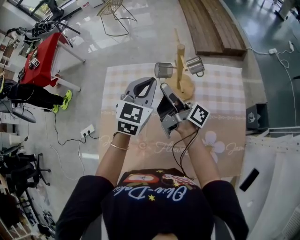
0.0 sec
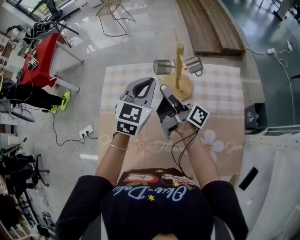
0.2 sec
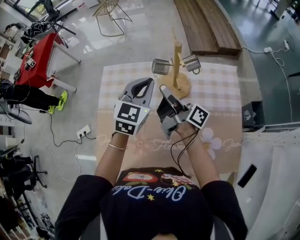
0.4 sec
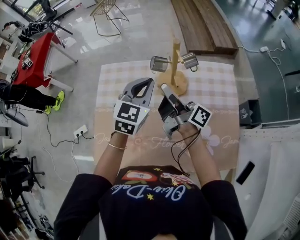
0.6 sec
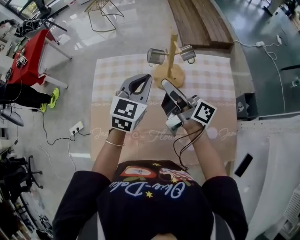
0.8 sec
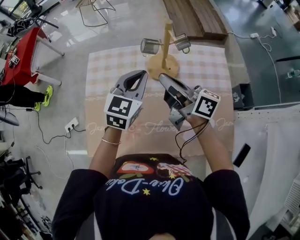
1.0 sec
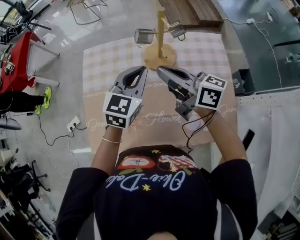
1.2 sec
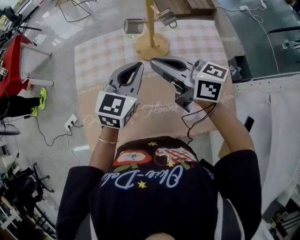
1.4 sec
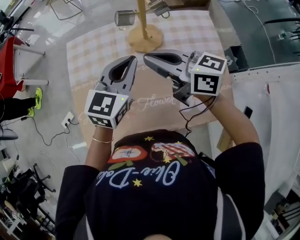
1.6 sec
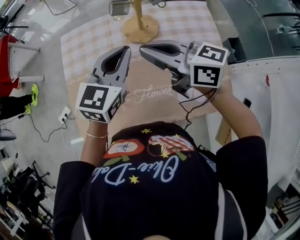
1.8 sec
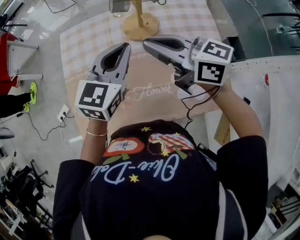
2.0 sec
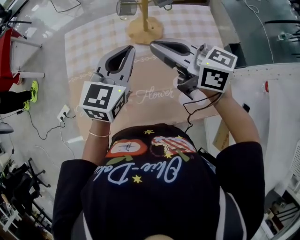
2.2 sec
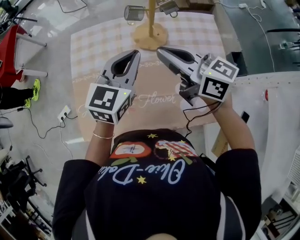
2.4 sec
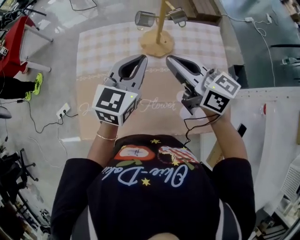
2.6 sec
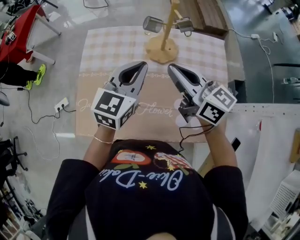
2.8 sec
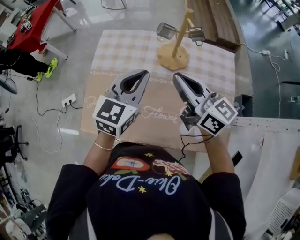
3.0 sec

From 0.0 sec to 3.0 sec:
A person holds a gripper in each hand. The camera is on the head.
From 0.0 sec to 1.6 sec: The left gripper shifts approximately 10 cm backward, while the right gripper is displaced backward and upward by some 15 cm, and rolls counterclockwise, seen from behind, by some 50 degrees.
From 1.6 sec to 3.0 sec: The grippers make only small movements.

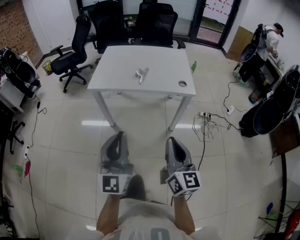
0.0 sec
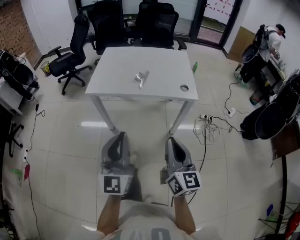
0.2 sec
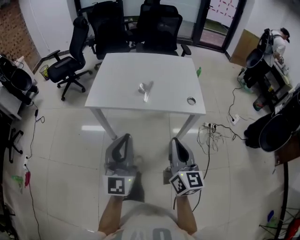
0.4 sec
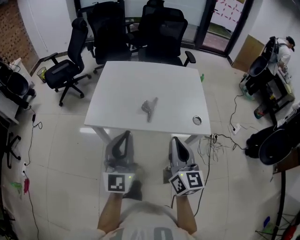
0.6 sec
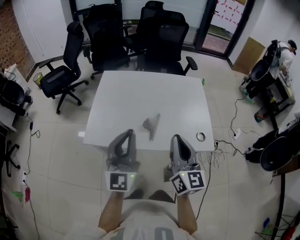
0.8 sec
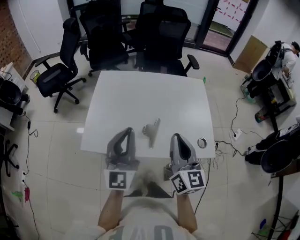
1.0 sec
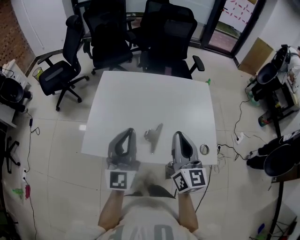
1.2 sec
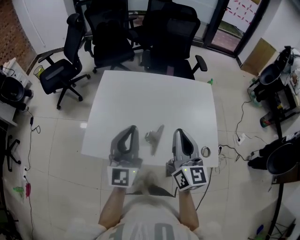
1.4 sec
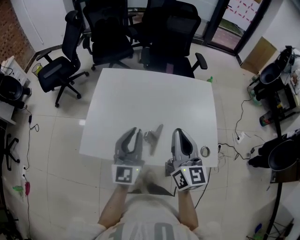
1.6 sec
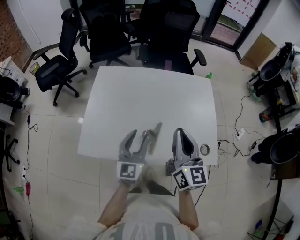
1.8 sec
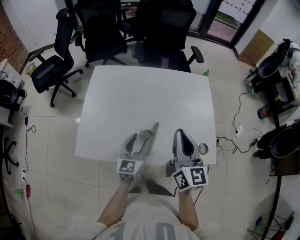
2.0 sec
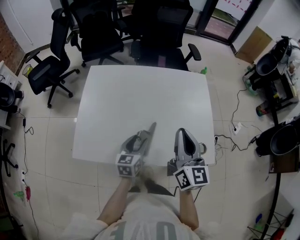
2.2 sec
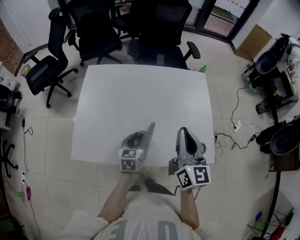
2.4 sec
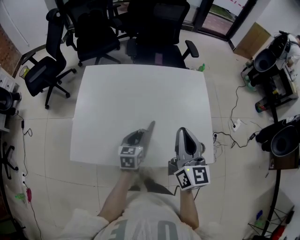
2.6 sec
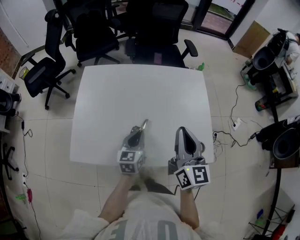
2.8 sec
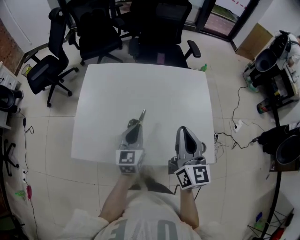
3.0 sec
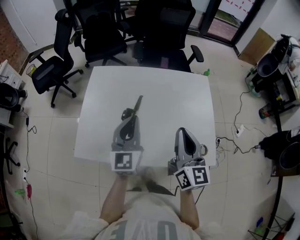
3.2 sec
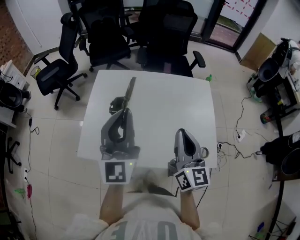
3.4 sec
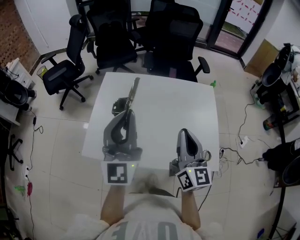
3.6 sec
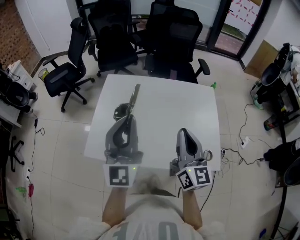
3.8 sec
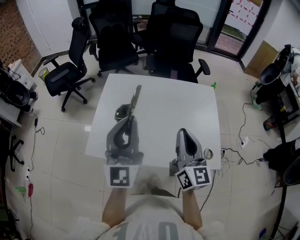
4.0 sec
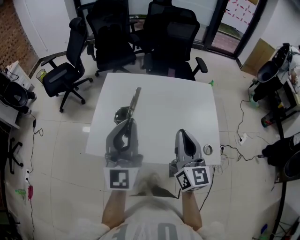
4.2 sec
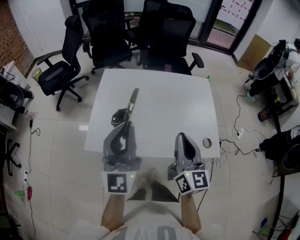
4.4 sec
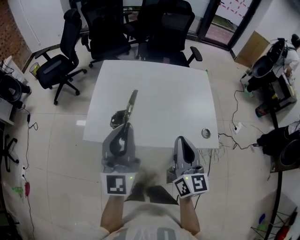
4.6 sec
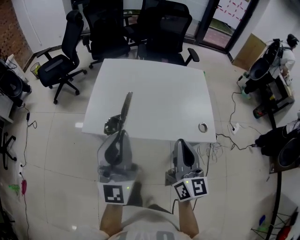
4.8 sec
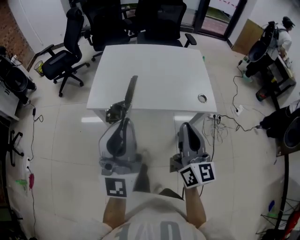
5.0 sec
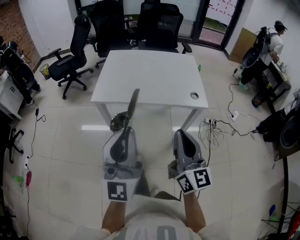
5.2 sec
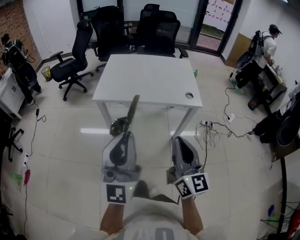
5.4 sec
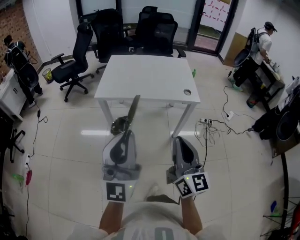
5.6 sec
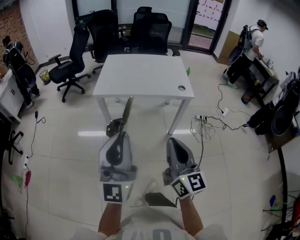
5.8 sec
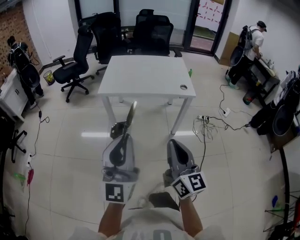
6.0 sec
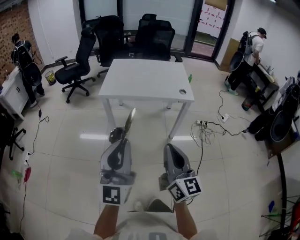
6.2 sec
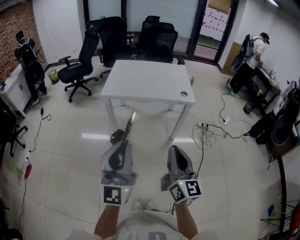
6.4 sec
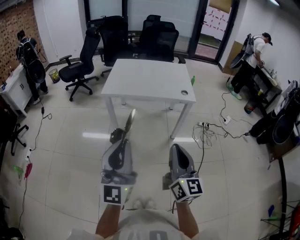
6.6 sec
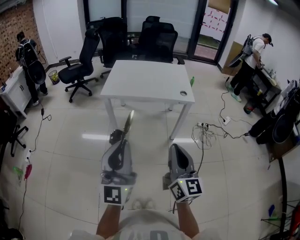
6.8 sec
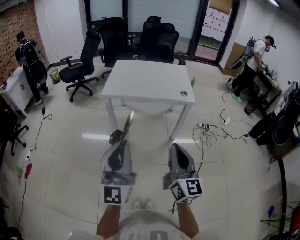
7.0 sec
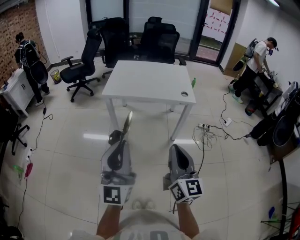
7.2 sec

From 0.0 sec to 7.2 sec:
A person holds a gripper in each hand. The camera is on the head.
From 0.0 sec to 1.4 sec: Both grippers are carried forward, some 50 cm.
From 1.4 sec to 2.8 sec: The left gripper moves downward, some 20 cm, points its fingers roughly 40 degrees further downward, and opens, then closes again. The right gripper travels to the right by approximately 5 cm.
From 2.8 sec to 4.4 sec: The left gripper goes approximately 30 cm upward, and angles its fingers upward, by about 40 degrees, while the right gripper shifts about 10 cm backward and to the left.
From 4.4 sec to 5.8 sec: Both grippers are carried backward, approximately 50 cm.
From 5.8 sec to 7.2 sec: Both grippers travel together backward, some 5 cm.

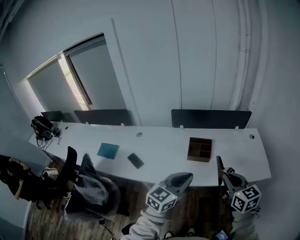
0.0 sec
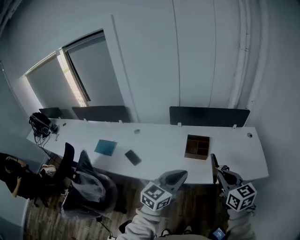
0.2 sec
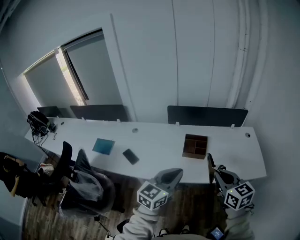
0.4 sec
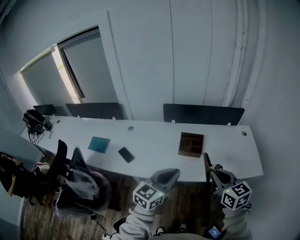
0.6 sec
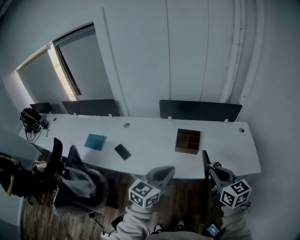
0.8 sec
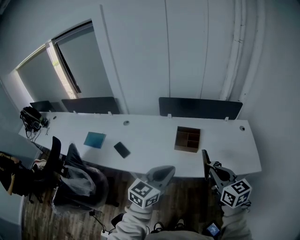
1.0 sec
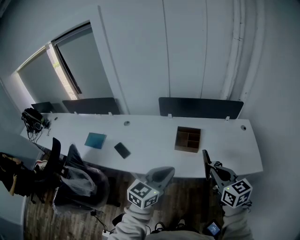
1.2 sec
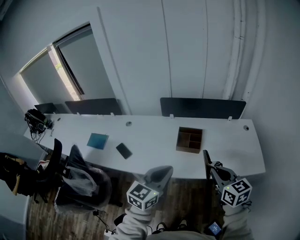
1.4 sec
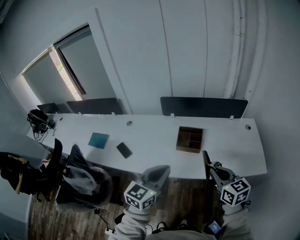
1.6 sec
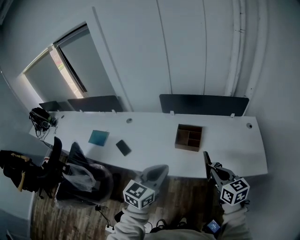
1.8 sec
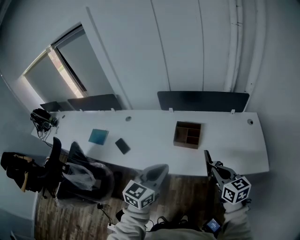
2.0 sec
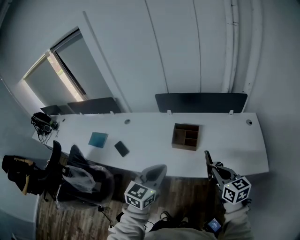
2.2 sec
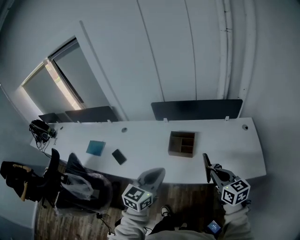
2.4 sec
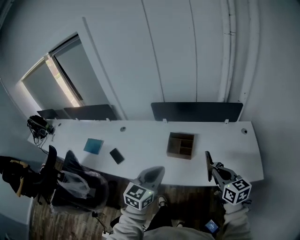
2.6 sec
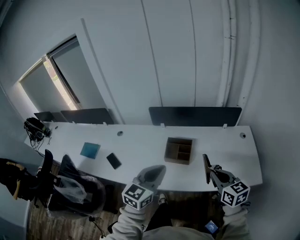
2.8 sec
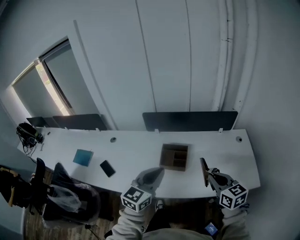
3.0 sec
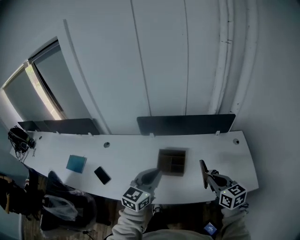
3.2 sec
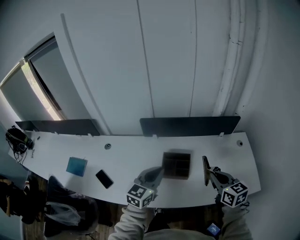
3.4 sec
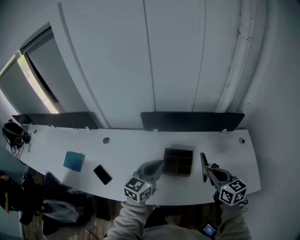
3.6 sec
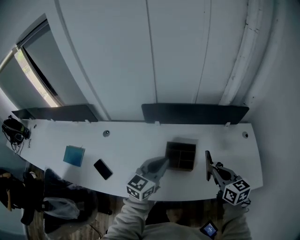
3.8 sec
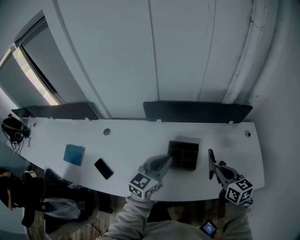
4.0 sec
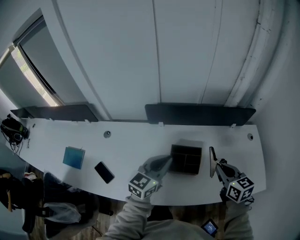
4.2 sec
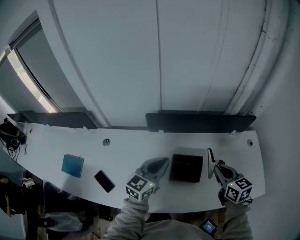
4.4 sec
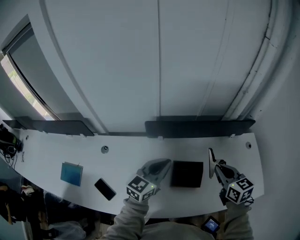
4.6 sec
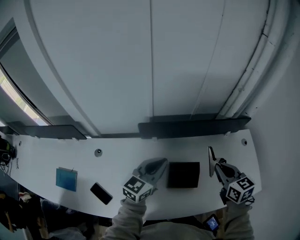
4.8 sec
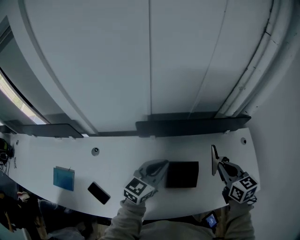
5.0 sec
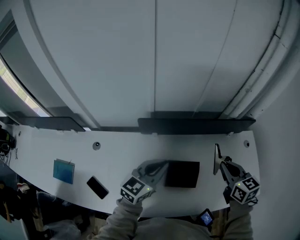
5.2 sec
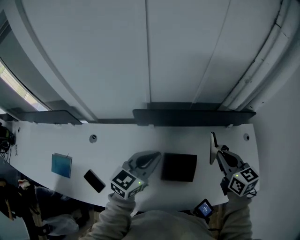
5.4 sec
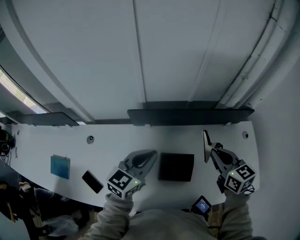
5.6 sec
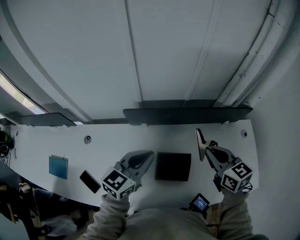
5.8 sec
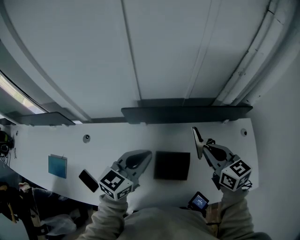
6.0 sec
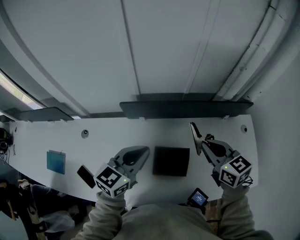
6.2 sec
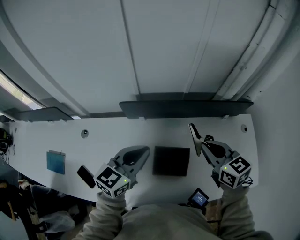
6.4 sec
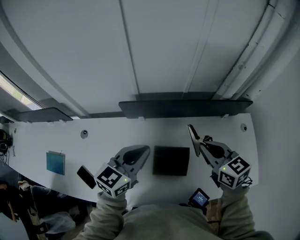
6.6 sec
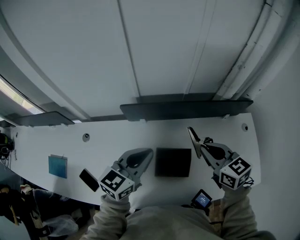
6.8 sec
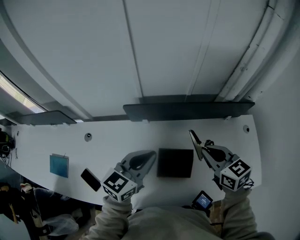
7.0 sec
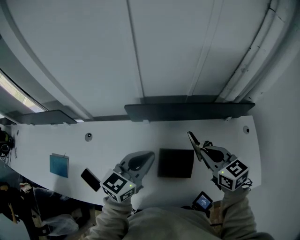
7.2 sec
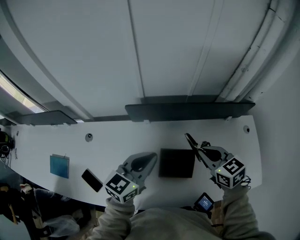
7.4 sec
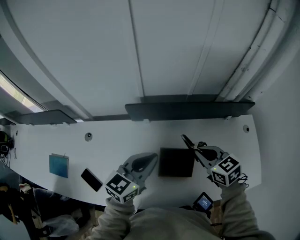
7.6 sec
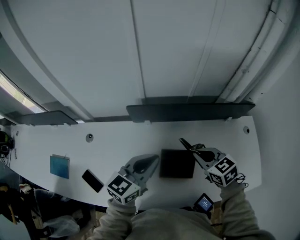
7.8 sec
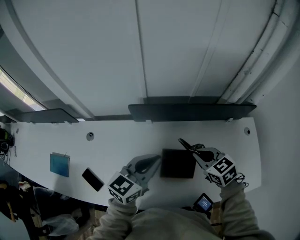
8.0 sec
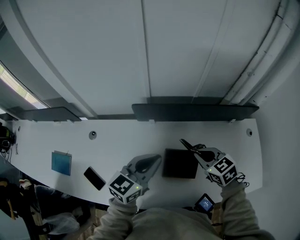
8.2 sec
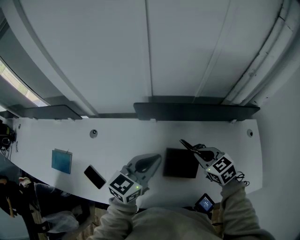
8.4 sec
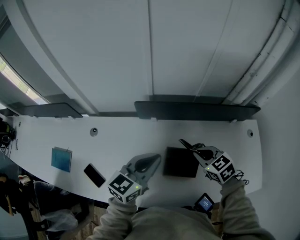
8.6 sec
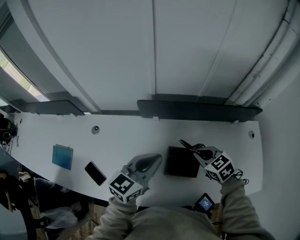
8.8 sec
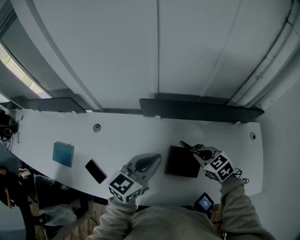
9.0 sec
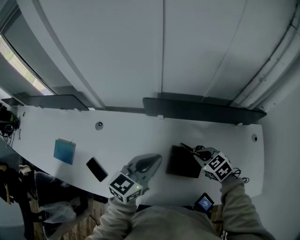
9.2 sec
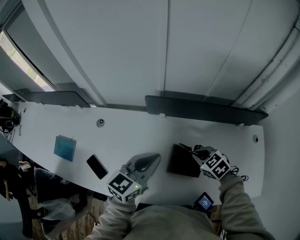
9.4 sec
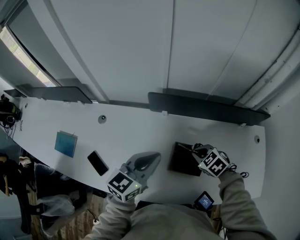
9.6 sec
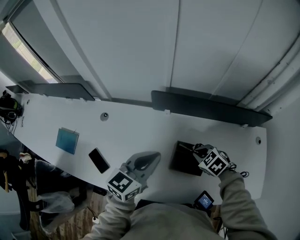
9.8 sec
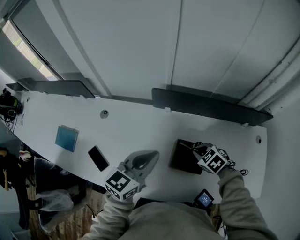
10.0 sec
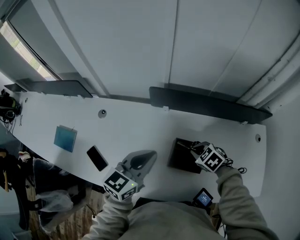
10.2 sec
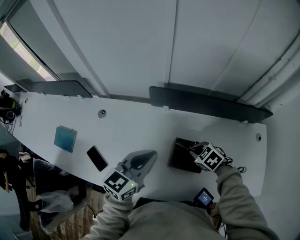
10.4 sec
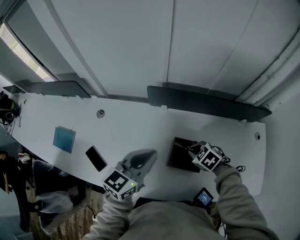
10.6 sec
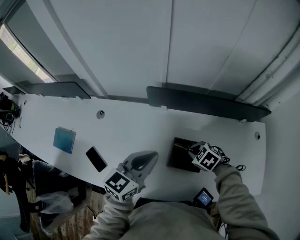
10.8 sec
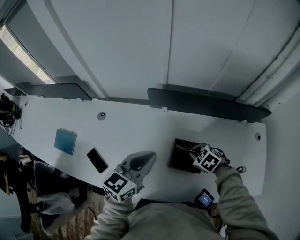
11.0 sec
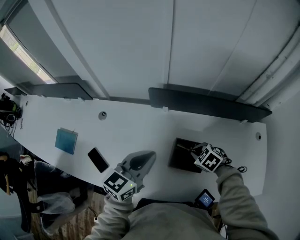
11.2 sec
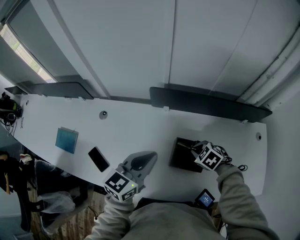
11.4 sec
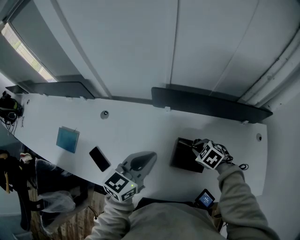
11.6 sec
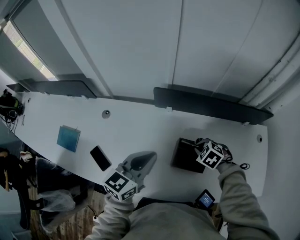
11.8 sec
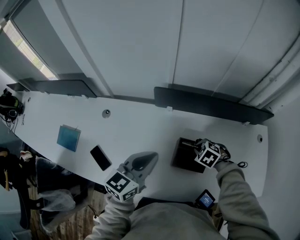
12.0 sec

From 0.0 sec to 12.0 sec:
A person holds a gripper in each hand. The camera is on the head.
From 0.0 sec to 1.6 sec: The right gripper is displaced downward by approximately 5 cm.
From 1.6 sec to 3.0 sec: The grippers both shift forward and to the right by approximately 15 cm.
From 3.0 sec to 4.4 sec: The grippers both shift forward and to the left by approximately 25 cm.
From 4.4 sec to 6.0 sec: The left gripper shifts about 5 cm forward. Meanwhile the right gripper travels forward by roughly 10 cm.
From 6.0 sec to 7.6 sec: The right gripper moves downward, approximately 5 cm.
From 7.6 sec to 9.0 sec: The right gripper heads downward, covering about 5 cm.
From 9.0 sec to 10.4 sec: The right gripper is displaced downward by about 10 cm, and changes its angle by approximately 20 degrees.
From 10.4 sec to 12.0 sec: The grippers stay close to where they were, moving slightly.

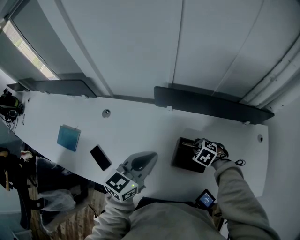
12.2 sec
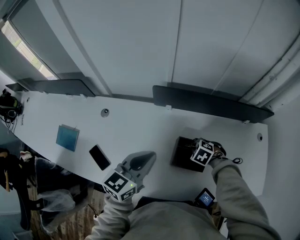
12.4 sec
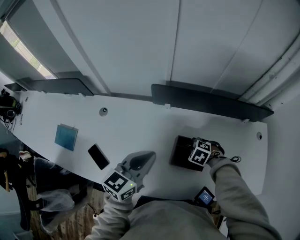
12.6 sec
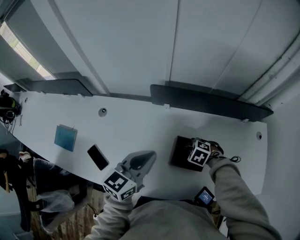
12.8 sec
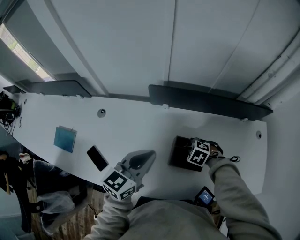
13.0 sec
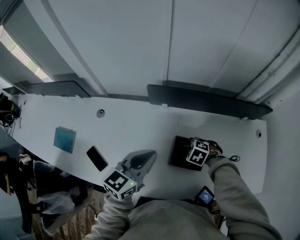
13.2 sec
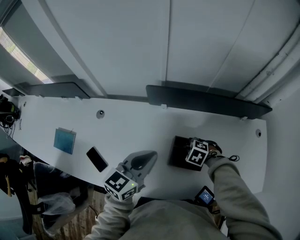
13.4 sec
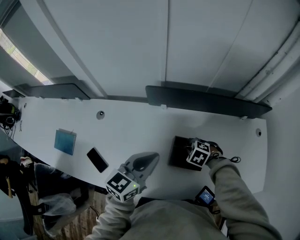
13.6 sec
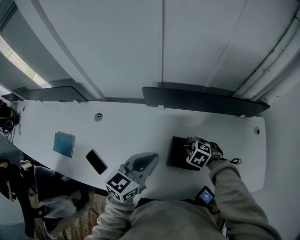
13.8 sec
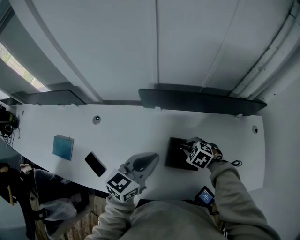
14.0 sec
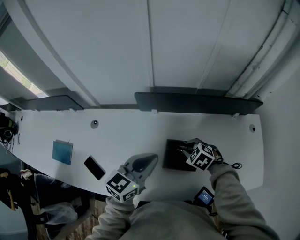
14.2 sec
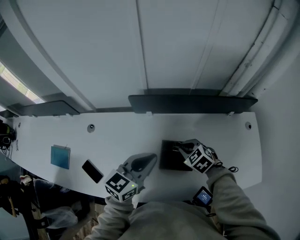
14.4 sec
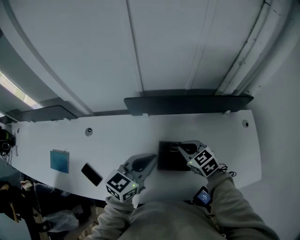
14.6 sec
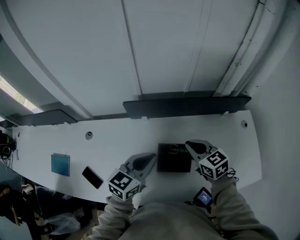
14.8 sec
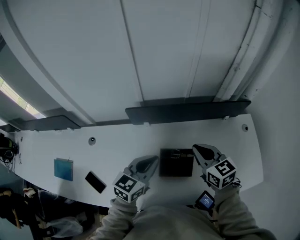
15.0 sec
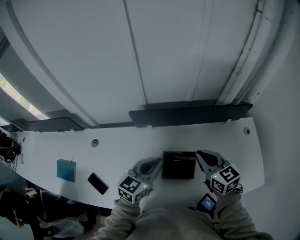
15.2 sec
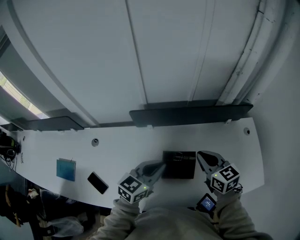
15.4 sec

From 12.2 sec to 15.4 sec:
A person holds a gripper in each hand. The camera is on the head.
From 12.2 sec to 13.8 sec: The grippers move only a little.
From 13.8 sec to 15.4 sec: The right gripper heads upward, covering approximately 20 cm, and tilts its fingers roughly 50 degrees upward; the left gripper heads to the right, covering roughly 5 cm.
